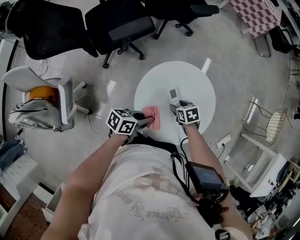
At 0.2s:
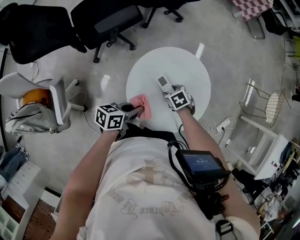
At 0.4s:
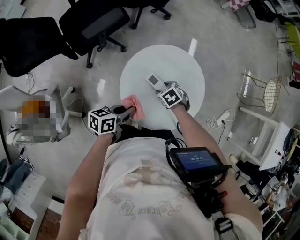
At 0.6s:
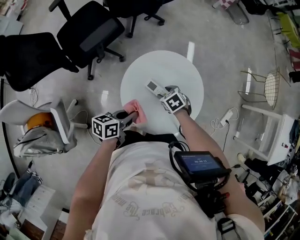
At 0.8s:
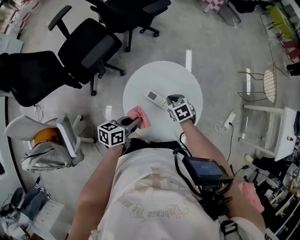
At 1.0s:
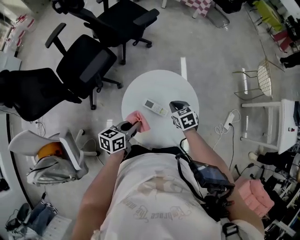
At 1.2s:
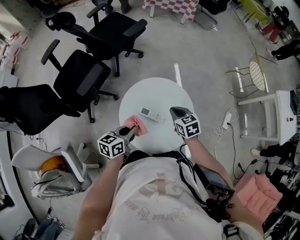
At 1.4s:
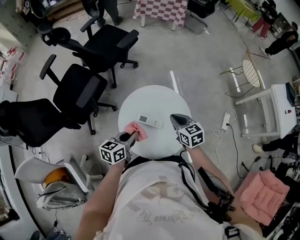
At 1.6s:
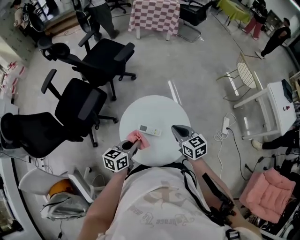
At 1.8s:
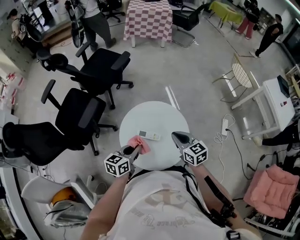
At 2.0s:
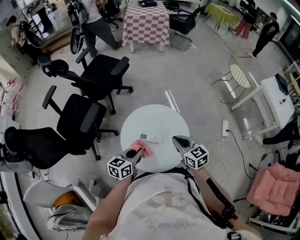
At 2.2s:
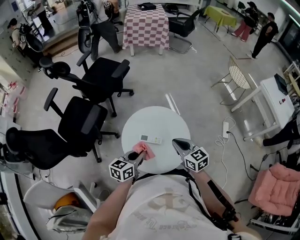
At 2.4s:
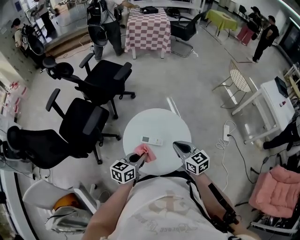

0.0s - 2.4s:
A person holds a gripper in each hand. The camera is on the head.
0.0s - 1.2s: The left gripper travels upward by some 5 cm, and turns by approximately 20 degrees. The right gripper goes roughly 15 cm upward, turns by about 40 degrees, and closes.
1.2s - 2.4s: The right gripper is displaced backward and upward by roughly 15 cm, and rotates approximately 20 degrees. The left gripper changes place by about 5 cm.

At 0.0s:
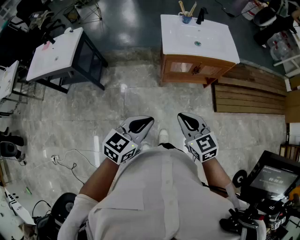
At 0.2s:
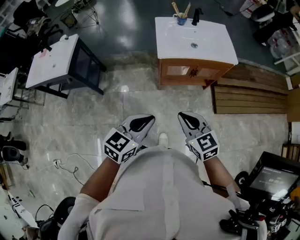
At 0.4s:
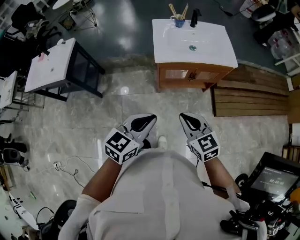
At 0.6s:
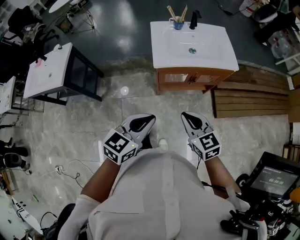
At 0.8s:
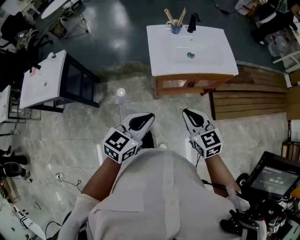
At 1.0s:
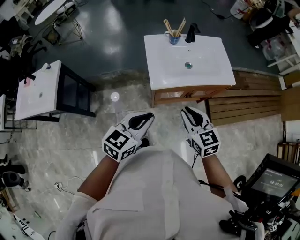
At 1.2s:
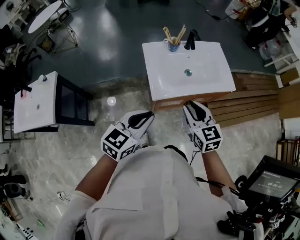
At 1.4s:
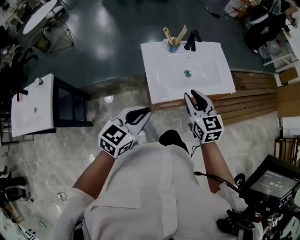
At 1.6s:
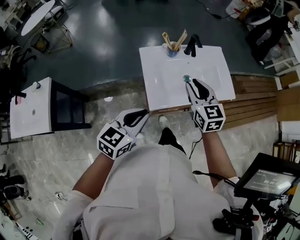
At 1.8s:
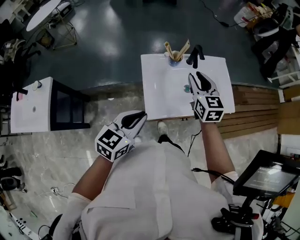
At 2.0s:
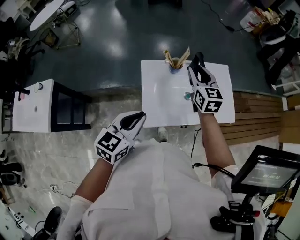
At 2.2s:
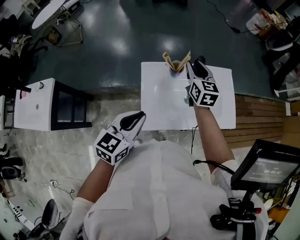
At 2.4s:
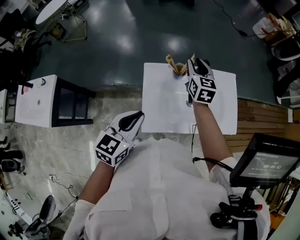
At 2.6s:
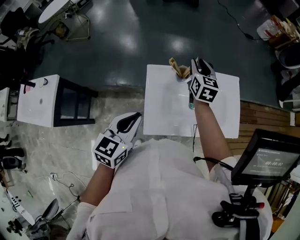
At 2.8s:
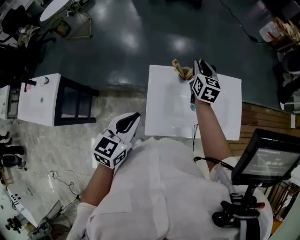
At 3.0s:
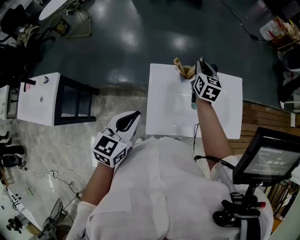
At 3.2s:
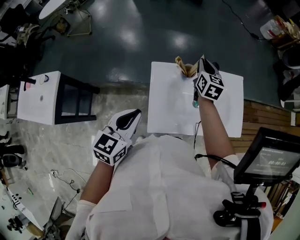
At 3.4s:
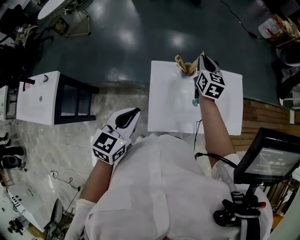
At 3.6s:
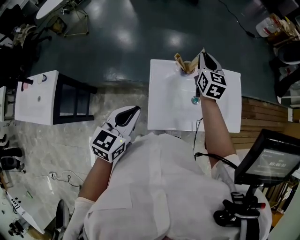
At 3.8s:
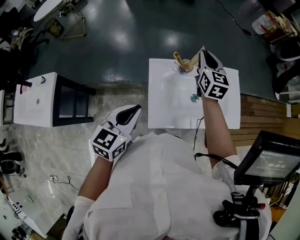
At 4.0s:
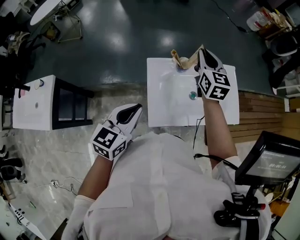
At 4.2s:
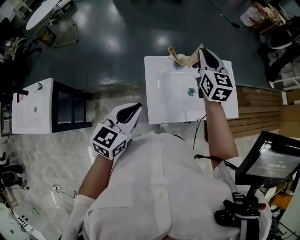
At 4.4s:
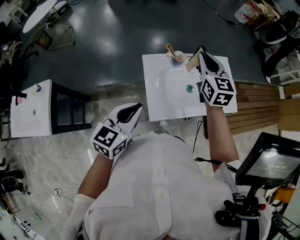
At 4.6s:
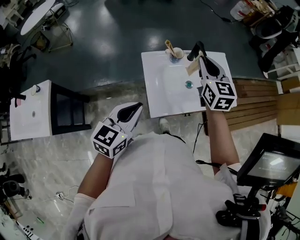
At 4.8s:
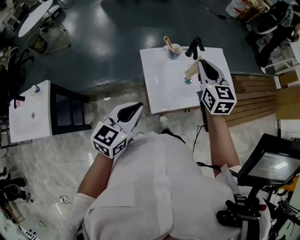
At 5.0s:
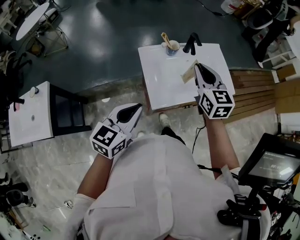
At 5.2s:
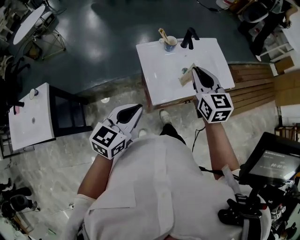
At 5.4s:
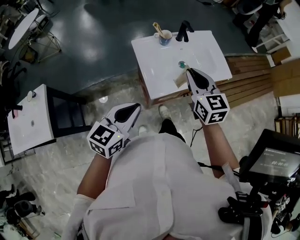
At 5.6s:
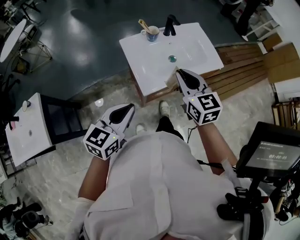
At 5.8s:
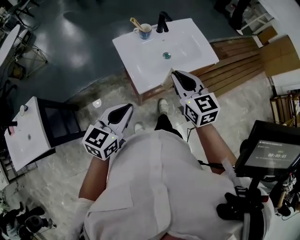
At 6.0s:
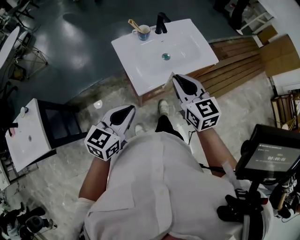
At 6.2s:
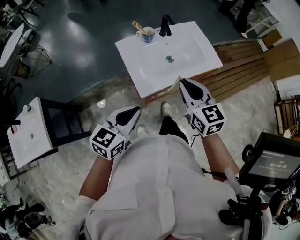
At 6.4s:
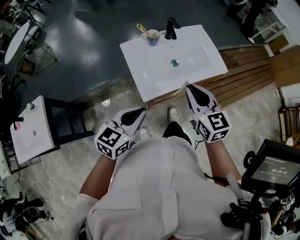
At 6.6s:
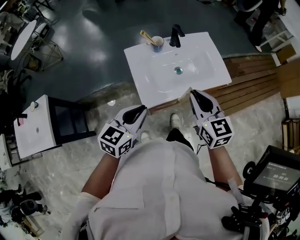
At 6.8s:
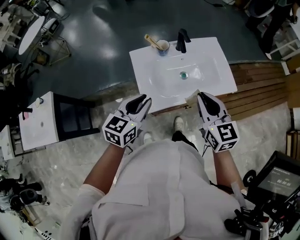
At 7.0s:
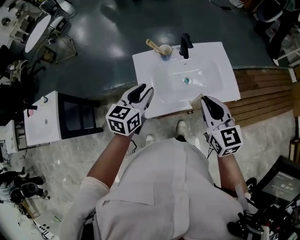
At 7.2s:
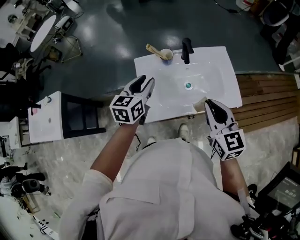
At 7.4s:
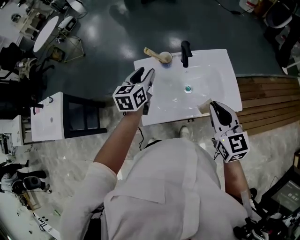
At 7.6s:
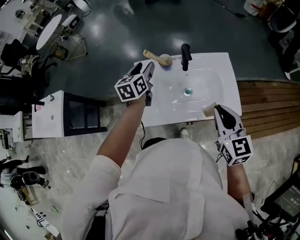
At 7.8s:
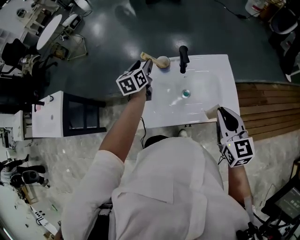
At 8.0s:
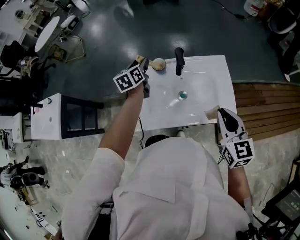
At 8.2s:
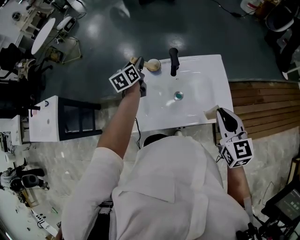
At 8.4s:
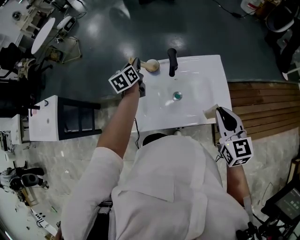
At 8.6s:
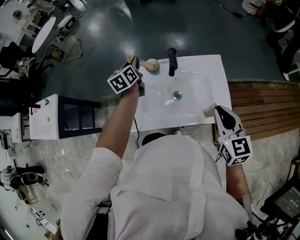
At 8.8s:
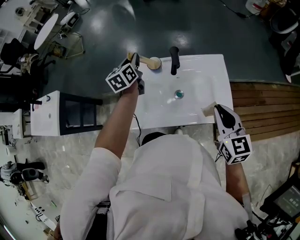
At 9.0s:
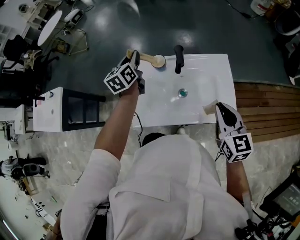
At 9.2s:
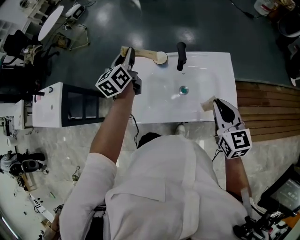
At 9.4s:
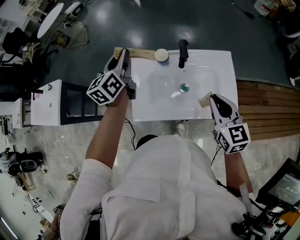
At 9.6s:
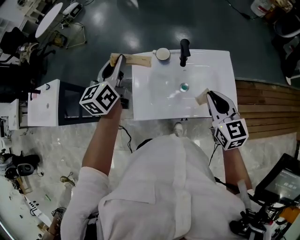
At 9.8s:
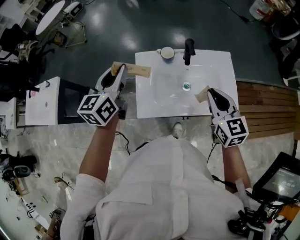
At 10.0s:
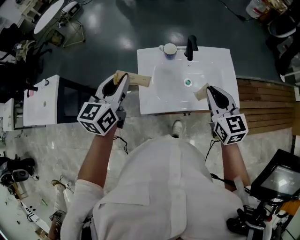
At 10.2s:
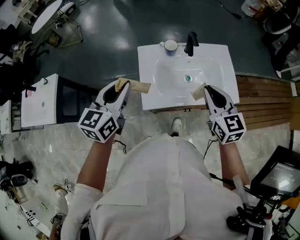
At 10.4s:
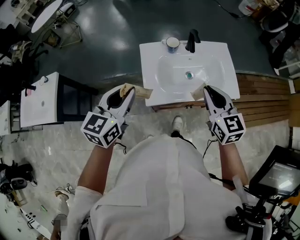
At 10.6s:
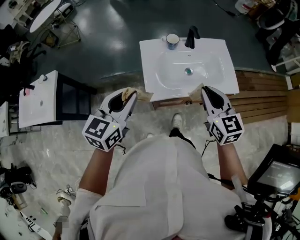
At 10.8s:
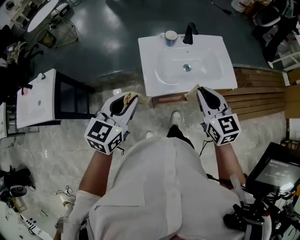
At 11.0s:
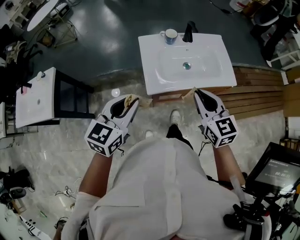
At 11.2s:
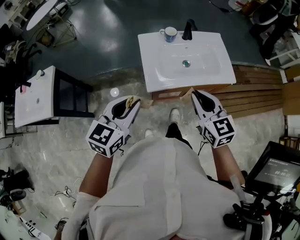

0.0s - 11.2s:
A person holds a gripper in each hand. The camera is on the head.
0.0s - 1.6s: The two grippers travel together, forward, about 40 cm. The right gripper turns by approximately 20 degrees.
1.6s - 3.2s: The left gripper goes approximately 10 cm forward, and changes its angle by some 20 degrees, while the right gripper is displaced forward by some 30 cm.
3.2s - 4.8s: The left gripper moves backward, roughly 10 cm. Meanwhile the right gripper shifts some 25 cm backward and upward.
4.8s - 6.4s: The left gripper shifts some 10 cm to the right and backward; the right gripper heads backward, covering some 20 cm.
6.4s - 8.0s: The left gripper shifts by about 40 cm, turns by about 50 degrees, and opens; the right gripper moves roughly 25 cm.
8.0s - 9.6s: The left gripper is displaced upward, backward and to the left by approximately 20 cm, and closes up; the right gripper moves approximately 5 cm.
9.6s - 11.2s: The left gripper is displaced backward by some 30 cm, and rotates some 30 degrees. Meanwhile the right gripper moves backward and to the left, roughly 25 cm.

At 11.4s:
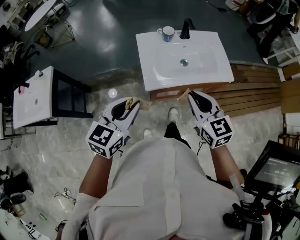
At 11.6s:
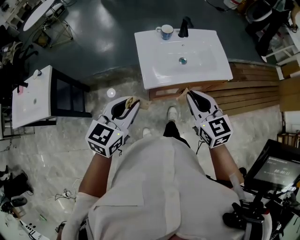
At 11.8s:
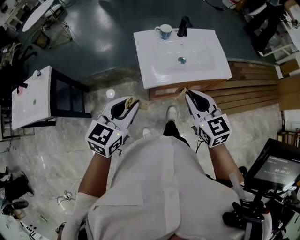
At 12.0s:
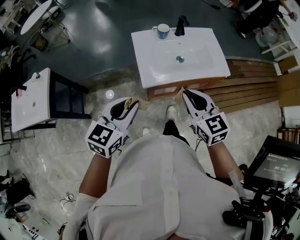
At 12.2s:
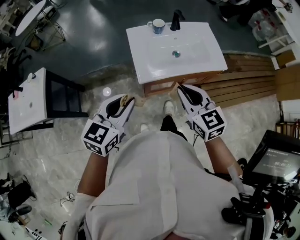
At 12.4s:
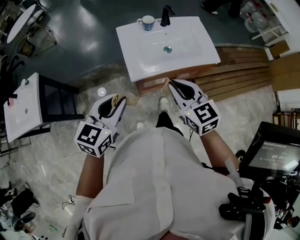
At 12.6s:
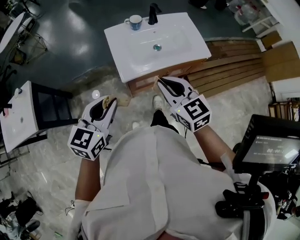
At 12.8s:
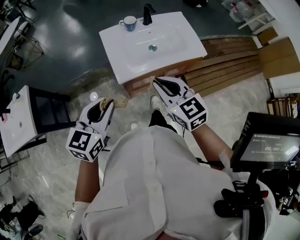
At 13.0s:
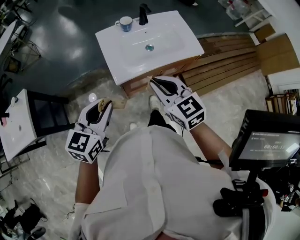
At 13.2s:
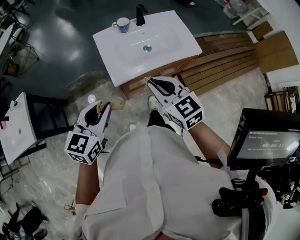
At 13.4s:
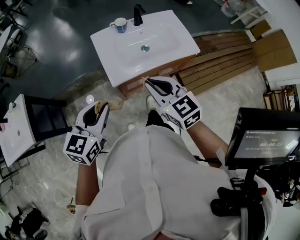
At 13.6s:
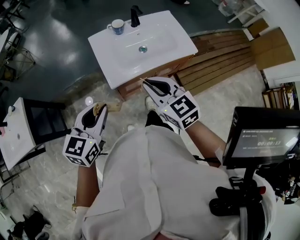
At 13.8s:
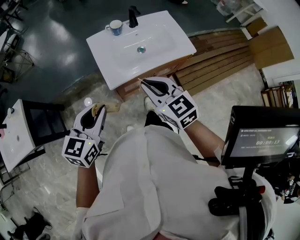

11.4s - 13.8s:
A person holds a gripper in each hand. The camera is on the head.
11.4s - 12.6s: The grippers move only a little.
12.6s - 13.8s: The two grippers keep their place.

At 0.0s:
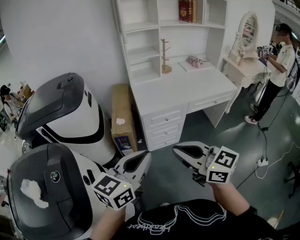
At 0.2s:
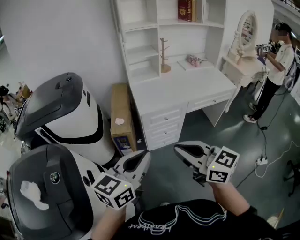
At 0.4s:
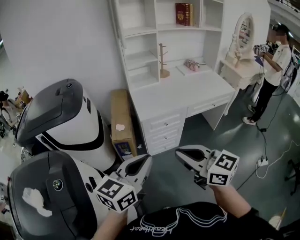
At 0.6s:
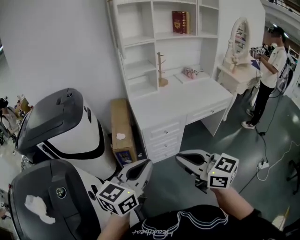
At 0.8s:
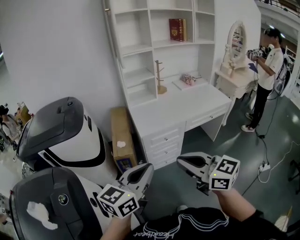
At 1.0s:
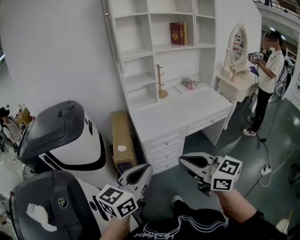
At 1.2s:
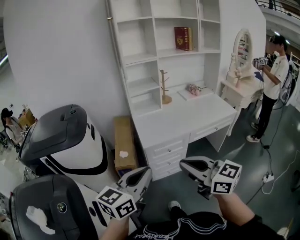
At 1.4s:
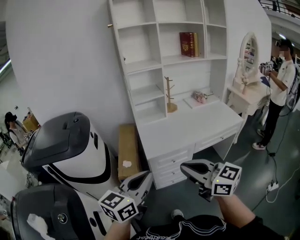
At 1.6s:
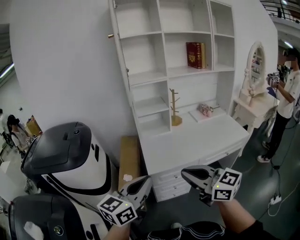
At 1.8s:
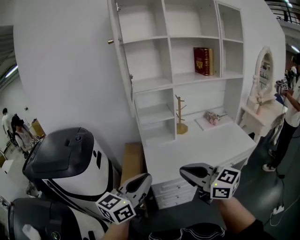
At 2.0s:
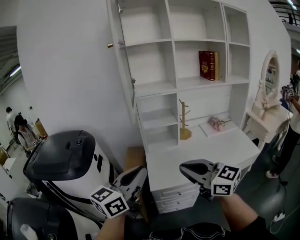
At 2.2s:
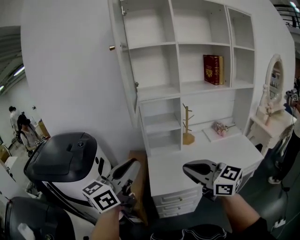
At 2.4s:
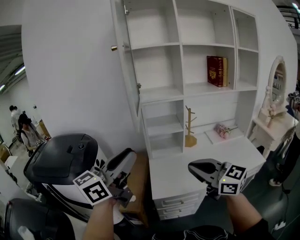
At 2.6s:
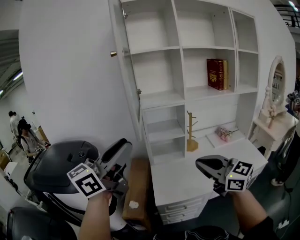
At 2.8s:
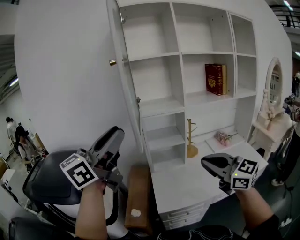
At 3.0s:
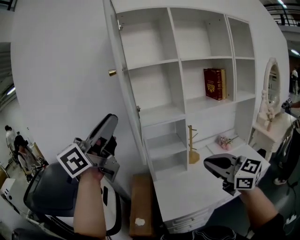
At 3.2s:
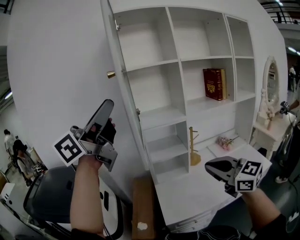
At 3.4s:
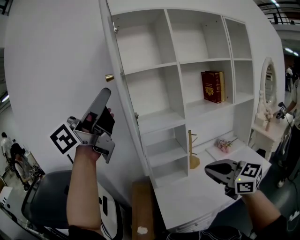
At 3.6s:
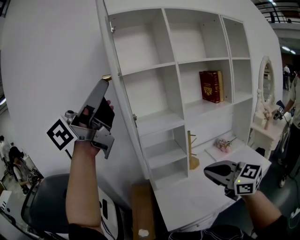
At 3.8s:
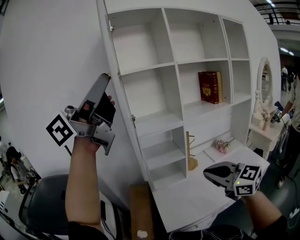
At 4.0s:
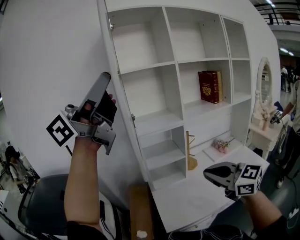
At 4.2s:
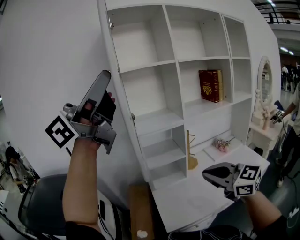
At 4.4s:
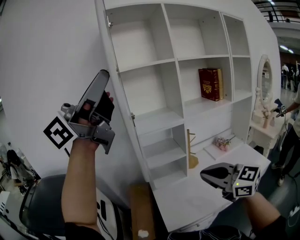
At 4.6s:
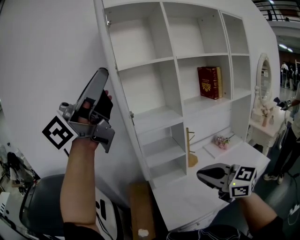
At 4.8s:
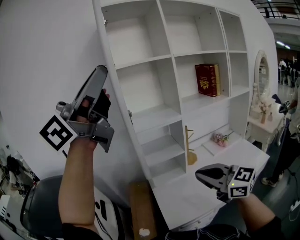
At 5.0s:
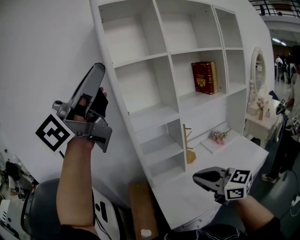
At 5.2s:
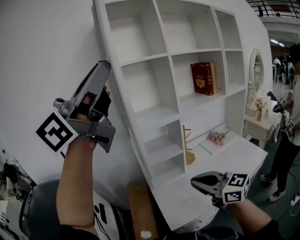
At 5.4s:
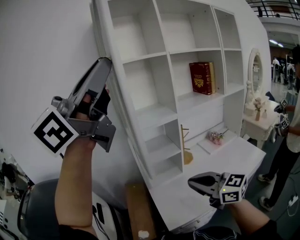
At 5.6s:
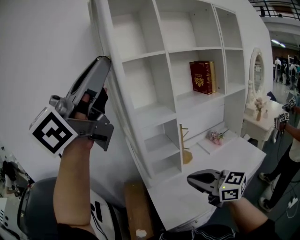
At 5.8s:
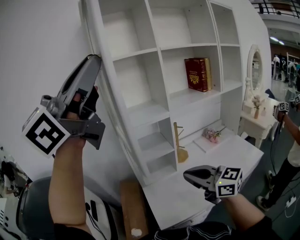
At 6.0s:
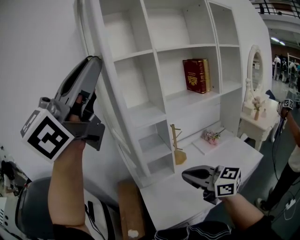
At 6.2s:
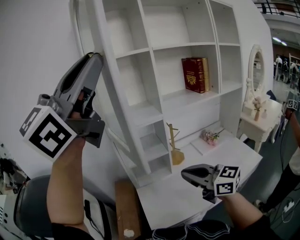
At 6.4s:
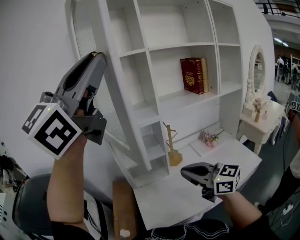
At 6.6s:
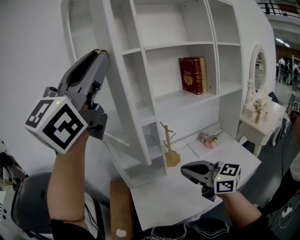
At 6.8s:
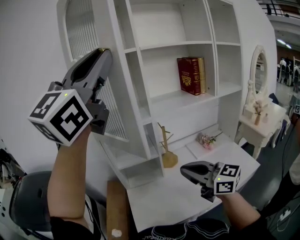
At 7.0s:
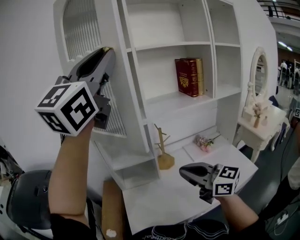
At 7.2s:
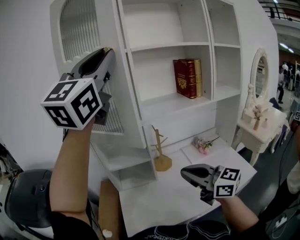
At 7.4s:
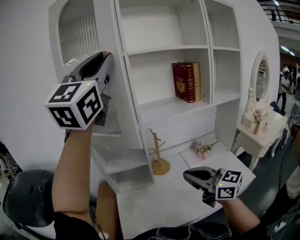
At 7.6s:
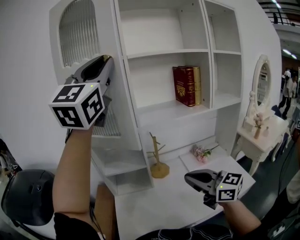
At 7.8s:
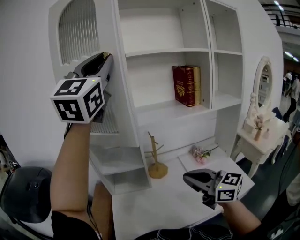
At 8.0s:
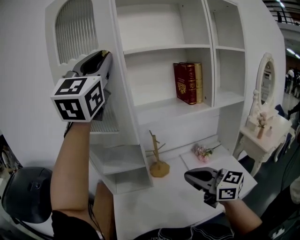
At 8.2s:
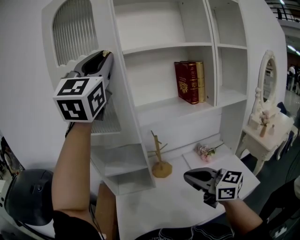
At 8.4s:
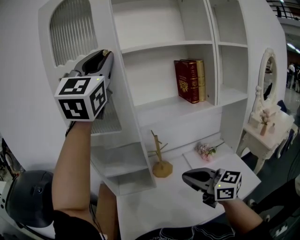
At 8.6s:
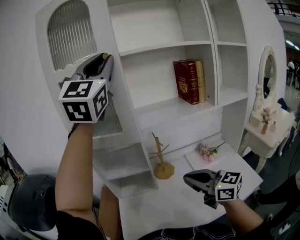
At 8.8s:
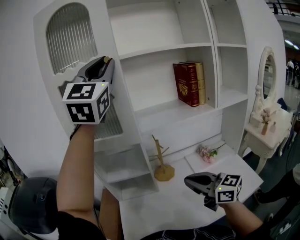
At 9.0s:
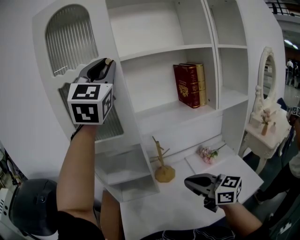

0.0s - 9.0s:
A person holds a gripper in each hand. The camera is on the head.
0.0s - 1.6s: The grippers both shift forward by some 20 cm.
1.6s - 3.0s: The right gripper is displaced forward and upward by approximately 25 cm, while the left gripper heads upward and forward, covering some 40 cm, turns by some 30 degrees, and opens its fingers.
3.0s - 4.4s: The right gripper moves some 5 cm; the left gripper travels upward by some 10 cm, and swivels about 20 degrees.
4.4s - 6.0s: The left gripper moves to the right, approximately 5 cm, and changes its angle by approximately 20 degrees, while the right gripper shifts roughly 5 cm forward.
6.0s - 7.6s: The right gripper is displaced to the right by roughly 20 cm, while the left gripper moves to the right and forward, approximately 20 cm, and swivels some 40 degrees.
7.6s - 9.0s: The left gripper shifts some 10 cm forward; the right gripper goes some 5 cm forward.
